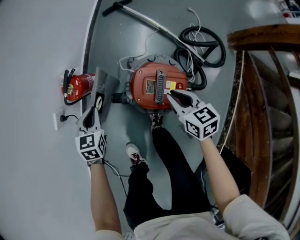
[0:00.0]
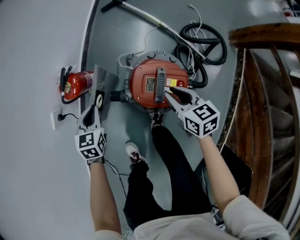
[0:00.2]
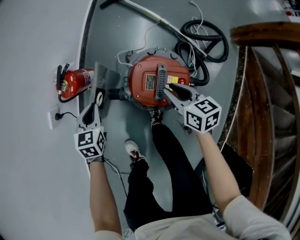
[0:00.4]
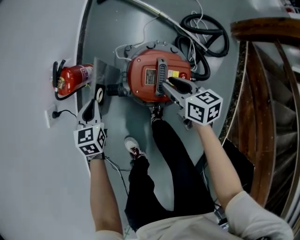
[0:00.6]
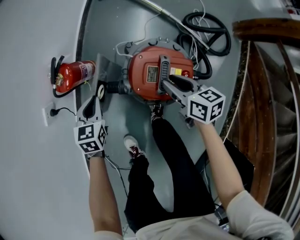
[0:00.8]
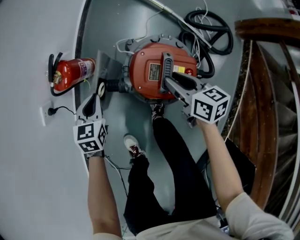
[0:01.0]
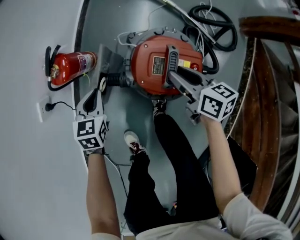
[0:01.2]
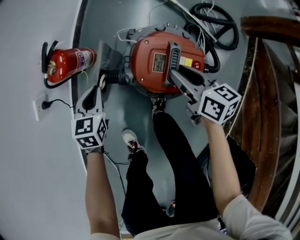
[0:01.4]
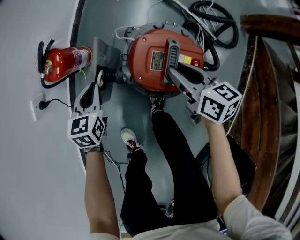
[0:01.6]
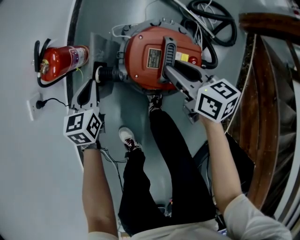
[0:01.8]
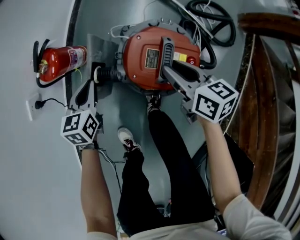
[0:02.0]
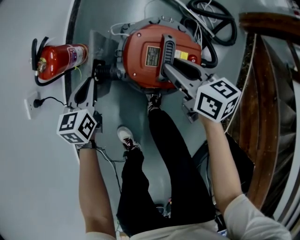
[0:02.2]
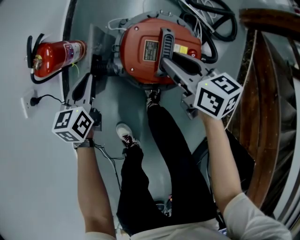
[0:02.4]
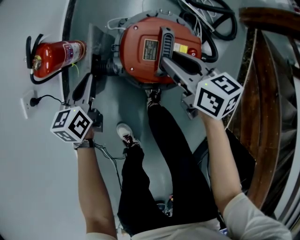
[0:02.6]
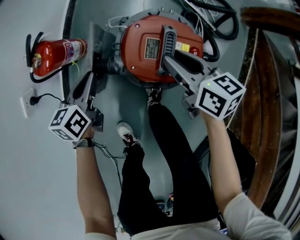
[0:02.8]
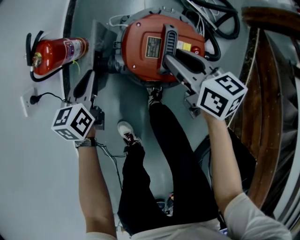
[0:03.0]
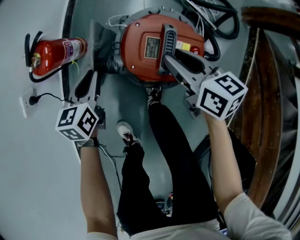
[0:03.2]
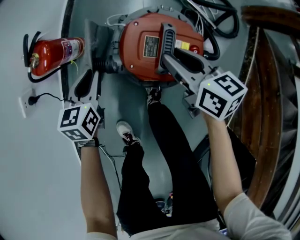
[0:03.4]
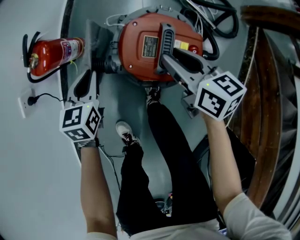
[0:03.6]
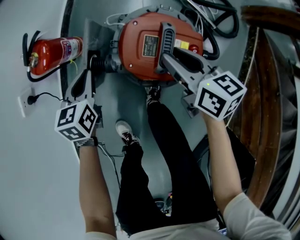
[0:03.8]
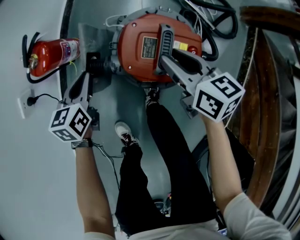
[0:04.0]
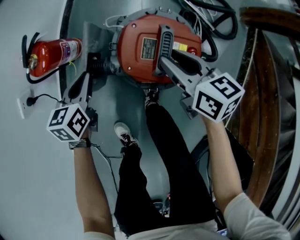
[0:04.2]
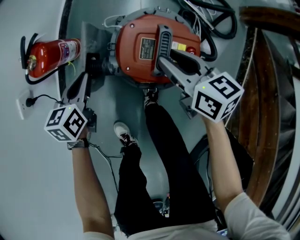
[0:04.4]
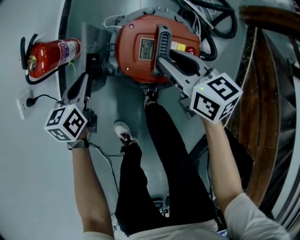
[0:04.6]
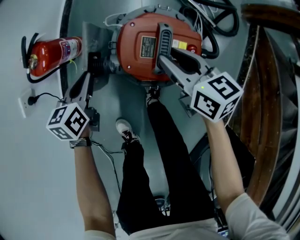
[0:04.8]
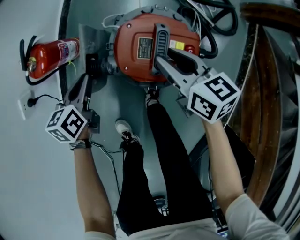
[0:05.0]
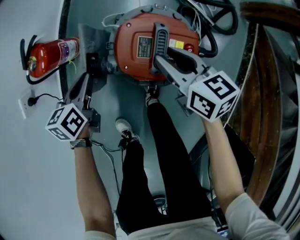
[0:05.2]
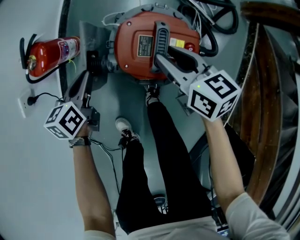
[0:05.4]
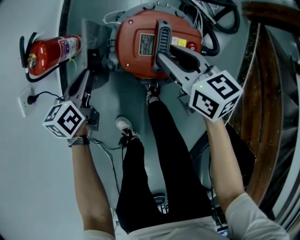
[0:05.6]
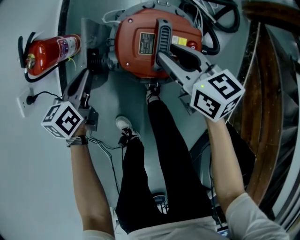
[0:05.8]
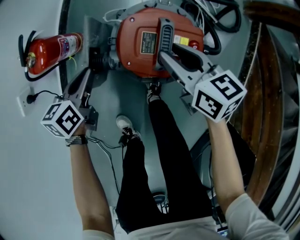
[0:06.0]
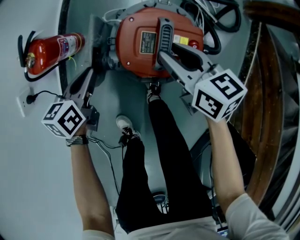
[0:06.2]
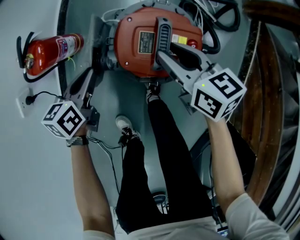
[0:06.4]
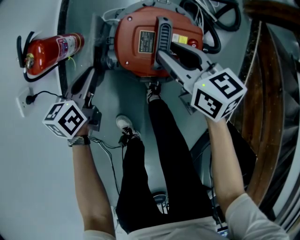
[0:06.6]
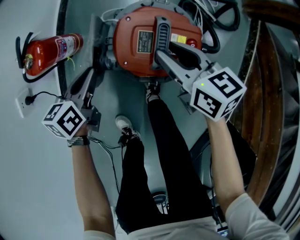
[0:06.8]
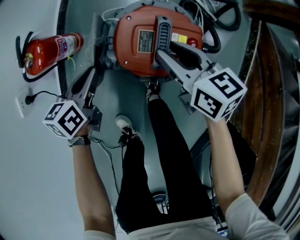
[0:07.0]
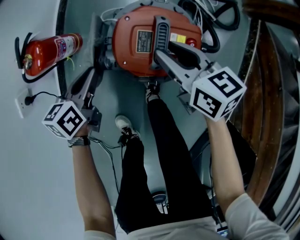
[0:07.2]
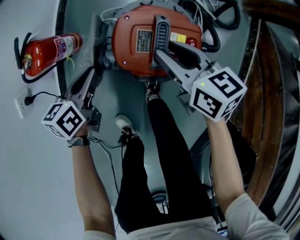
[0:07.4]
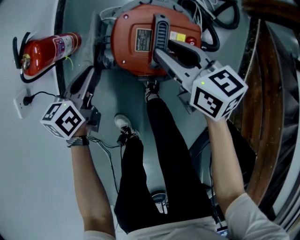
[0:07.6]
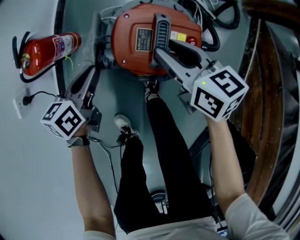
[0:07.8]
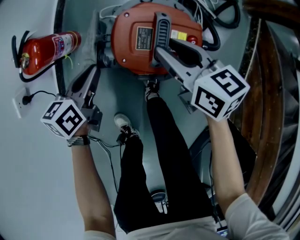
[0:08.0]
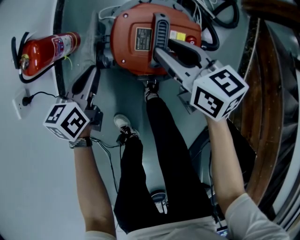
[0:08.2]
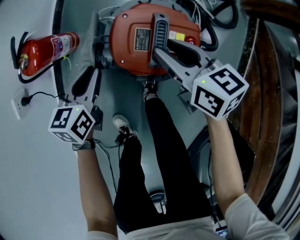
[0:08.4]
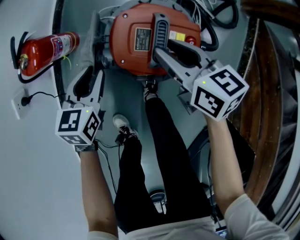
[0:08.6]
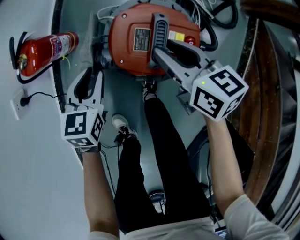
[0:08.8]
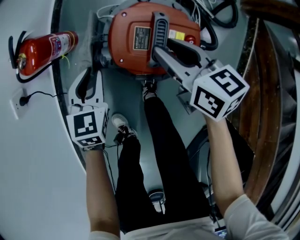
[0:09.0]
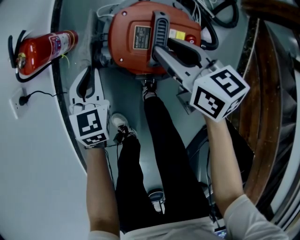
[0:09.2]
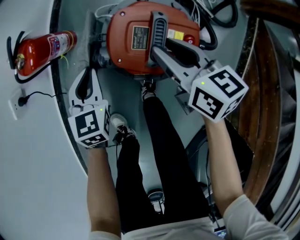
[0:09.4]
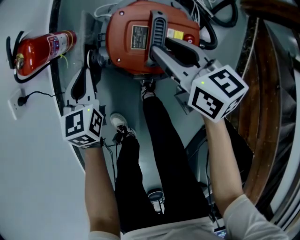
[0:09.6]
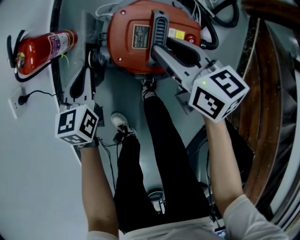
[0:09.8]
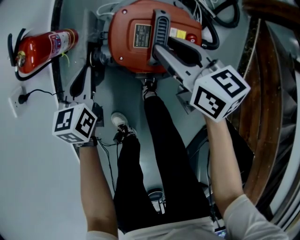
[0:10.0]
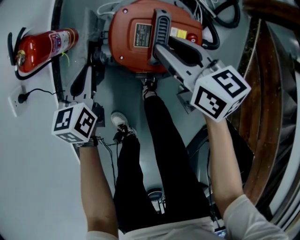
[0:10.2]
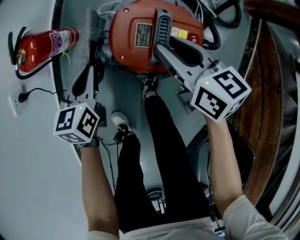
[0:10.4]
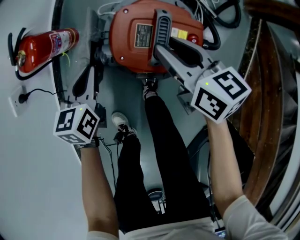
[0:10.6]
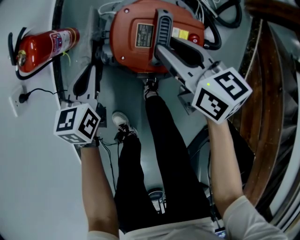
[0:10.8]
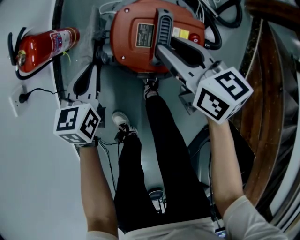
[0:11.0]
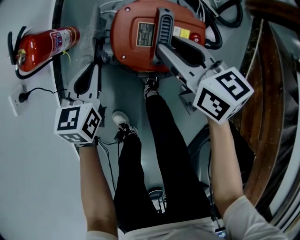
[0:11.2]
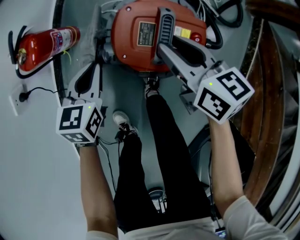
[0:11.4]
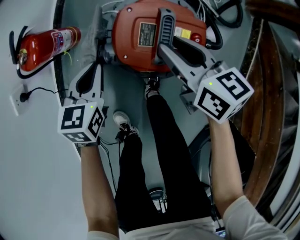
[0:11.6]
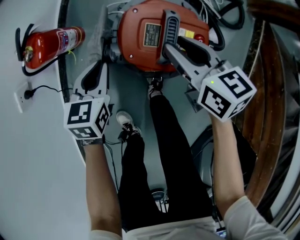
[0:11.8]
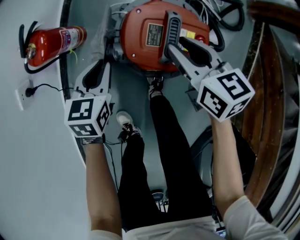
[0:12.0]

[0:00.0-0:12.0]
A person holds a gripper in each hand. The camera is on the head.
0:00.0 to 0:01.6: Both grippers travel together downward, approximately 5 cm.
0:03.0 to 0:07.6: The grippers move only a little.
0:07.6 to 0:09.0: The left gripper rotates some 40 degrees.
0:09.0 to 0:10.4: The left gripper rotates approximately 20 degrees.
0:10.4 to 0:12.0: The grippers move only a little.

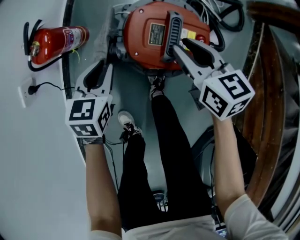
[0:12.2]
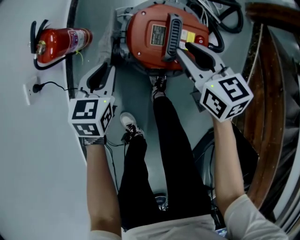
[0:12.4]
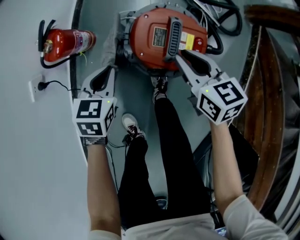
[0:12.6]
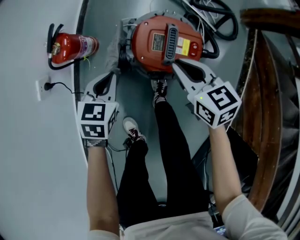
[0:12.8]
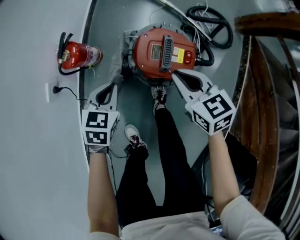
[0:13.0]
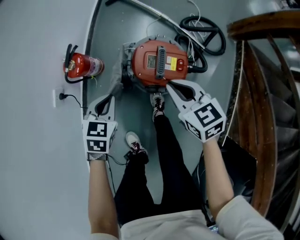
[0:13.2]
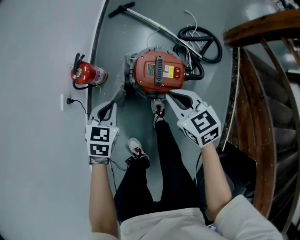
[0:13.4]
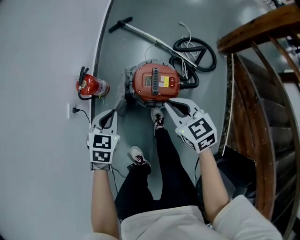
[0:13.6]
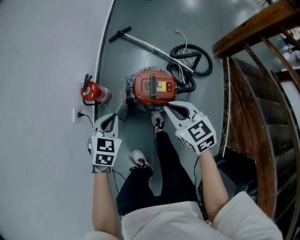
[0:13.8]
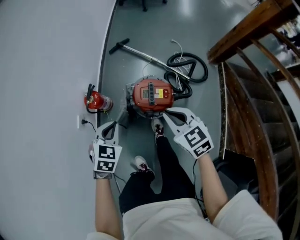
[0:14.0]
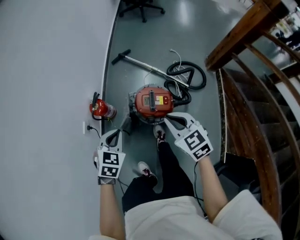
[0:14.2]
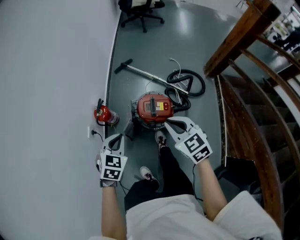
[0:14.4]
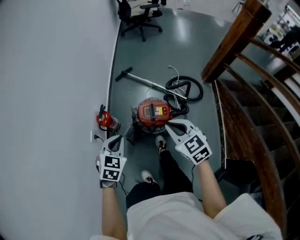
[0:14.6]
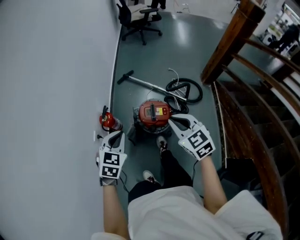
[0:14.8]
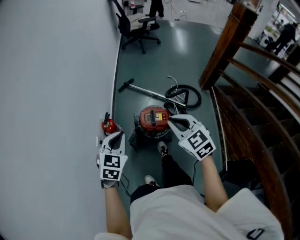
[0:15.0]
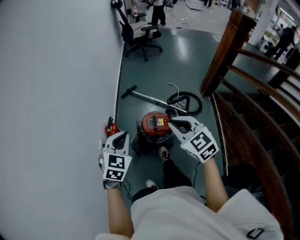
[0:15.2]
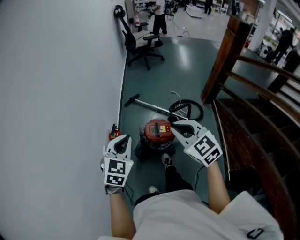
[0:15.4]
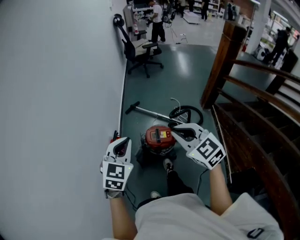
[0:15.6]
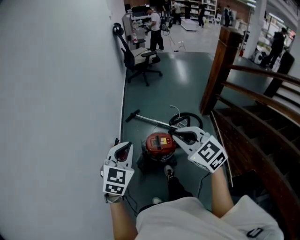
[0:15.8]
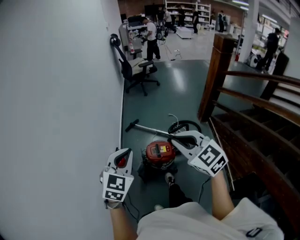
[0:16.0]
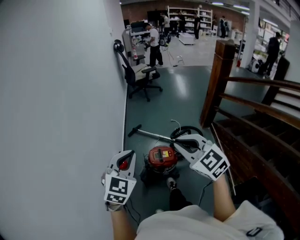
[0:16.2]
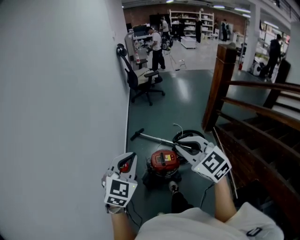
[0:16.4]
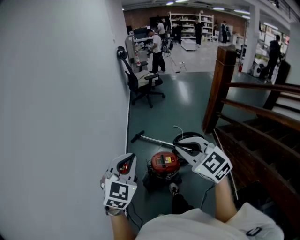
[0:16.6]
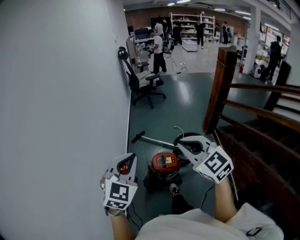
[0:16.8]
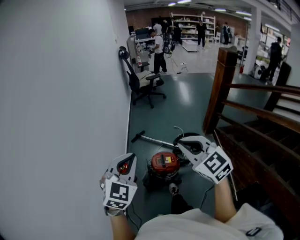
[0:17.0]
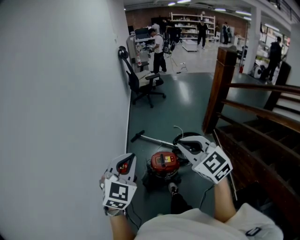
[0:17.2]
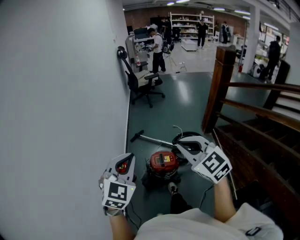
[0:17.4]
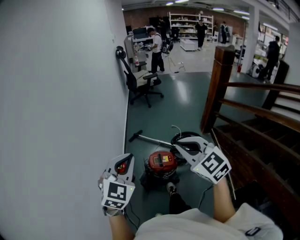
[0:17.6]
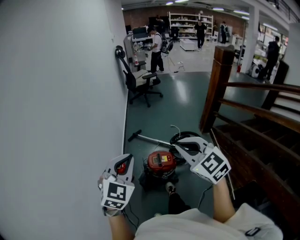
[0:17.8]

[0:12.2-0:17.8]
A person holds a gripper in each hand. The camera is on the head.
0:12.2 to 0:13.6: The right gripper travels upward and backward by some 25 cm, and closes its fingers. The left gripper is displaced upward by some 20 cm.
0:13.6 to 0:15.0: Both grippers travel together upward, about 30 cm. The left gripper changes its angle by about 20 degrees.
0:15.0 to 0:16.4: Both grippers travel together upward, about 20 cm. The left gripper rotates about 20 degrees.
0:16.4 to 0:17.8: There are only small adjustments of the grippers.

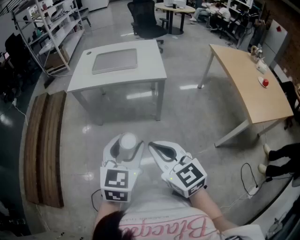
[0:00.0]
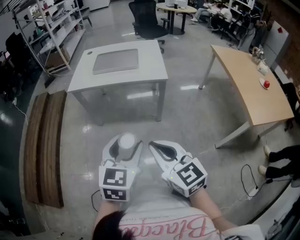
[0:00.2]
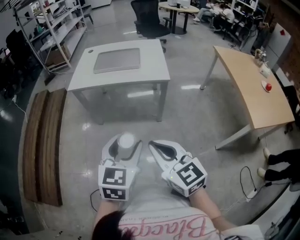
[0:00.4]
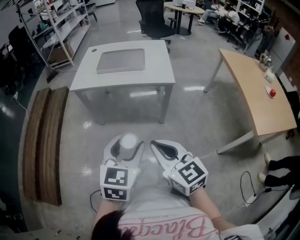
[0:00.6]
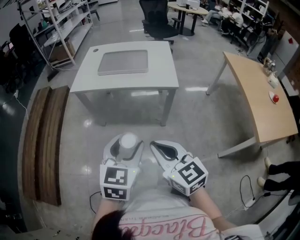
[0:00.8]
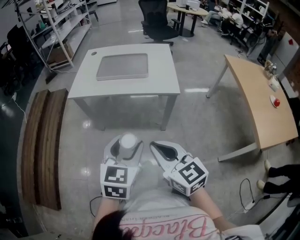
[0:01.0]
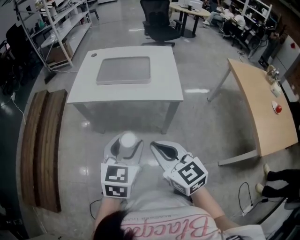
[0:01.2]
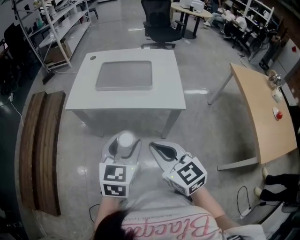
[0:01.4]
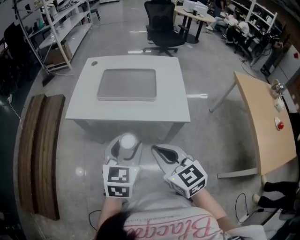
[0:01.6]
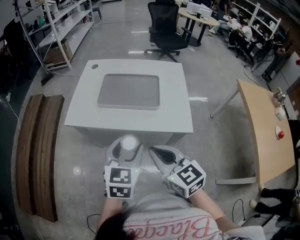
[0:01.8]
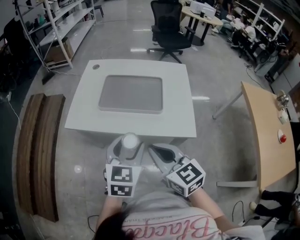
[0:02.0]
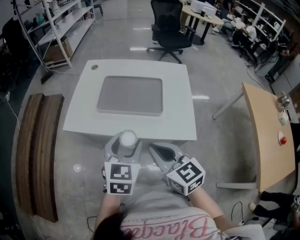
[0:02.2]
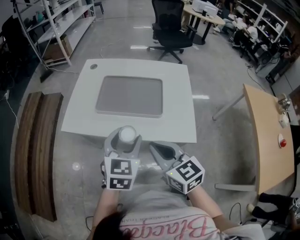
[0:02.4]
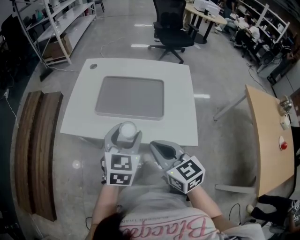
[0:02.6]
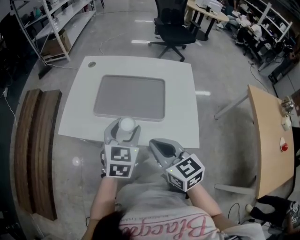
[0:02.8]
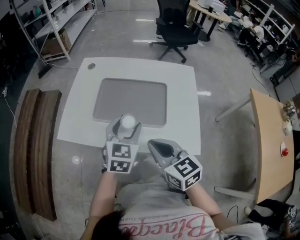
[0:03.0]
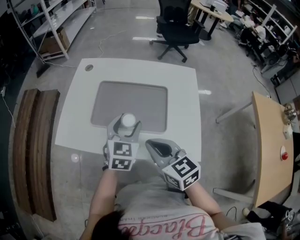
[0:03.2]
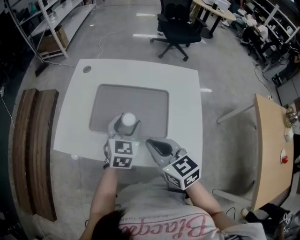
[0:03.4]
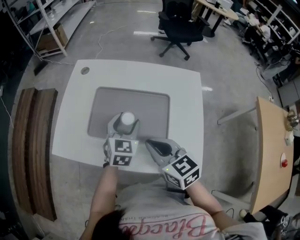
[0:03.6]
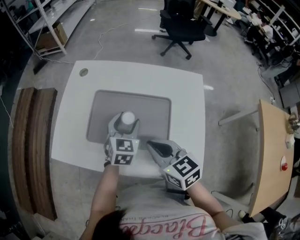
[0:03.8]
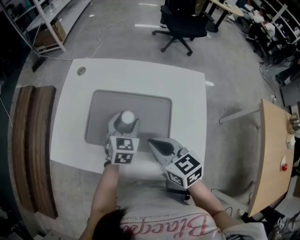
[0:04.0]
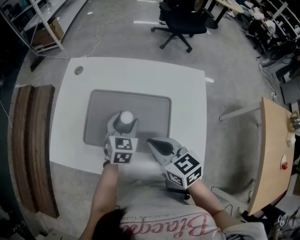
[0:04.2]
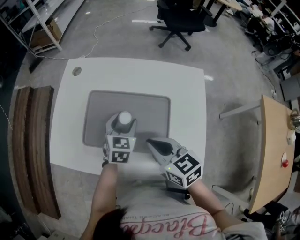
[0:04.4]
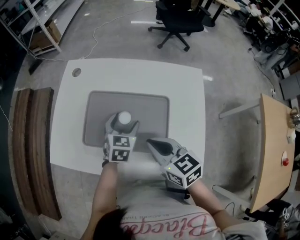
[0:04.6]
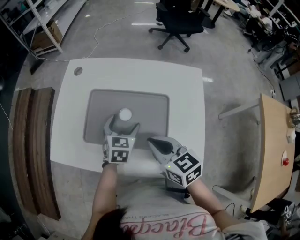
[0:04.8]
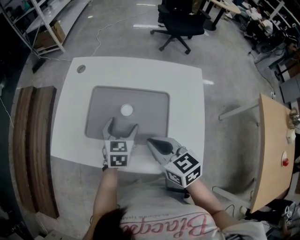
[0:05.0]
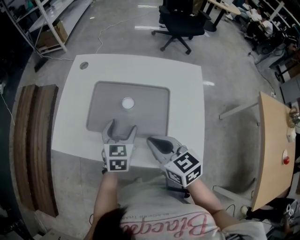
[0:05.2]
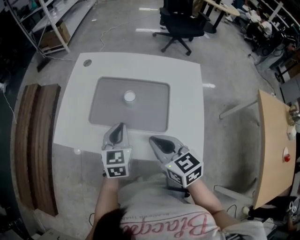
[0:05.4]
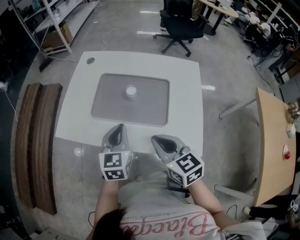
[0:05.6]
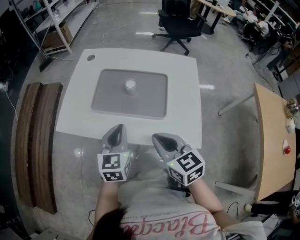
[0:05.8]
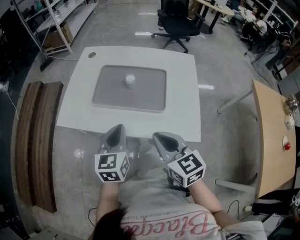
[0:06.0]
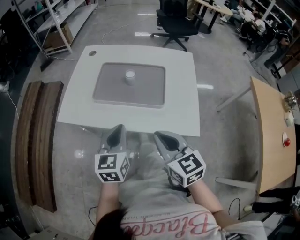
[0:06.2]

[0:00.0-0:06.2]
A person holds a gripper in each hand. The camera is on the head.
0:00.0 to 0:01.6: Both grippers travel together forward, approximately 25 cm.
0:01.6 to 0:03.2: The two grippers go roughly 25 cm forward.
0:03.2 to 0:04.6: The left gripper heads downward and forward, covering approximately 10 cm. The right gripper is displaced forward by about 5 cm.
0:04.6 to 0:06.2: The right gripper heads backward, covering about 15 cm. Meanwhile the left gripper travels backward, upward and to the left by roughly 25 cm, swivels some 20 degrees, and closes up.
